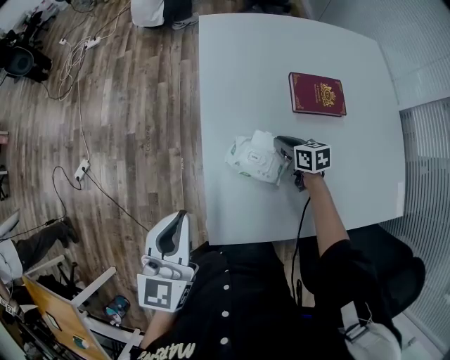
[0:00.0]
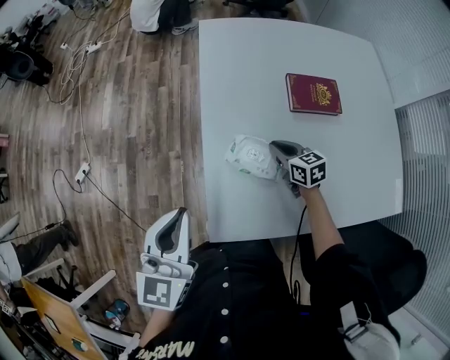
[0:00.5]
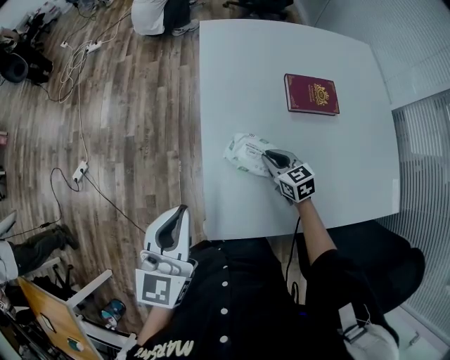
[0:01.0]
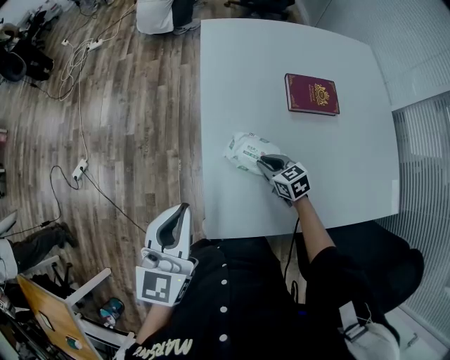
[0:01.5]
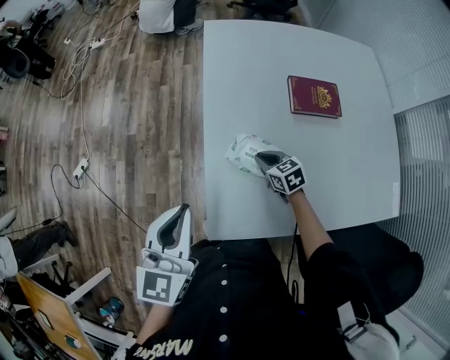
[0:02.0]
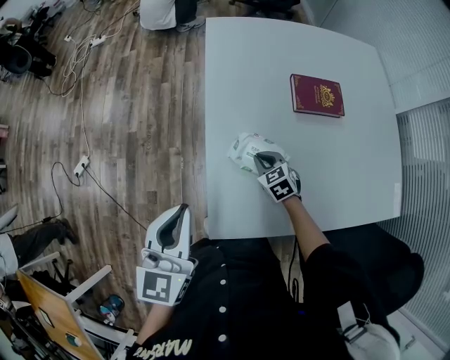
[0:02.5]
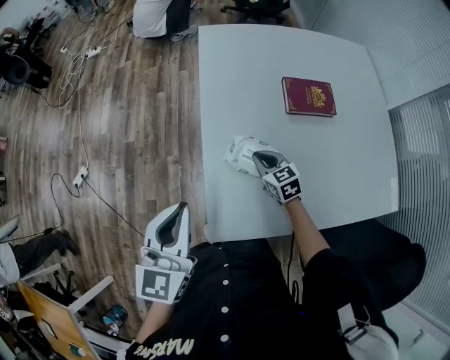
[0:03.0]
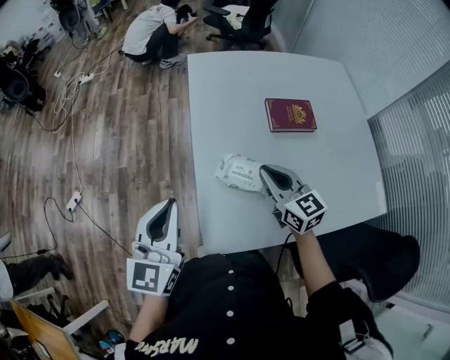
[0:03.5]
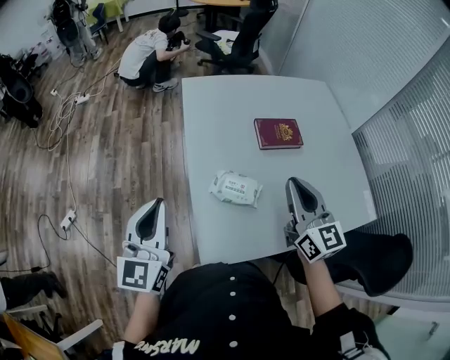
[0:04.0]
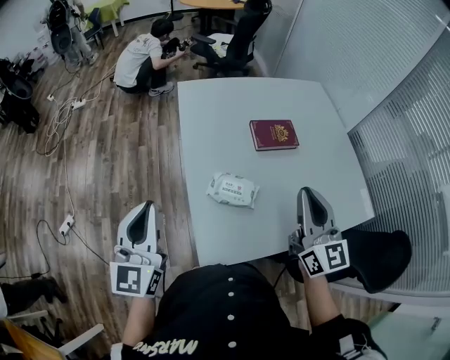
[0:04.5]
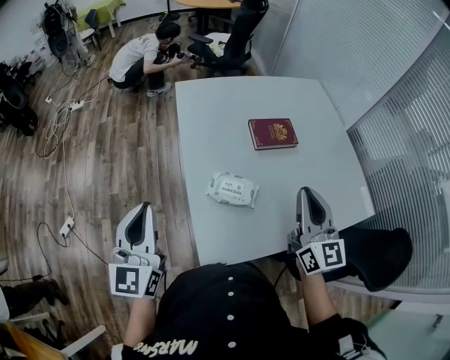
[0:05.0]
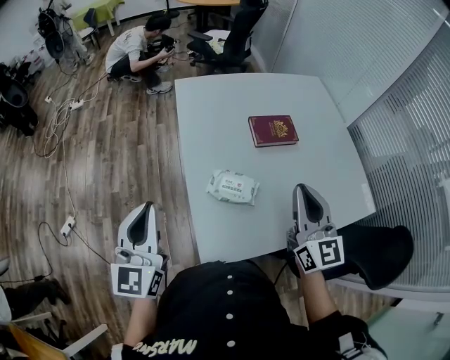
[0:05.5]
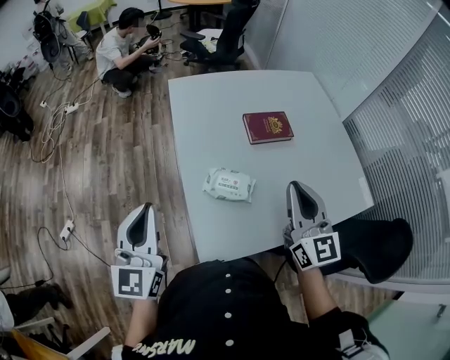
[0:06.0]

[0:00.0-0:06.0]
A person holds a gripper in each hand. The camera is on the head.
0:00.0 to 0:02.0: The right gripper goes about 10 cm to the left, and rotates some 20 degrees.
0:02.0 to 0:04.0: The left gripper shifts by roughly 5 cm. The right gripper is displaced upward by about 35 cm, and tips its fingers upward by about 40 degrees.
0:04.0 to 0:06.0: The grippers move only a little.

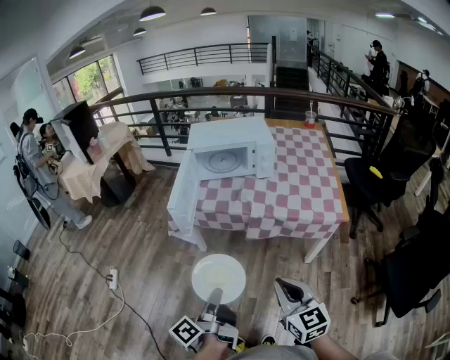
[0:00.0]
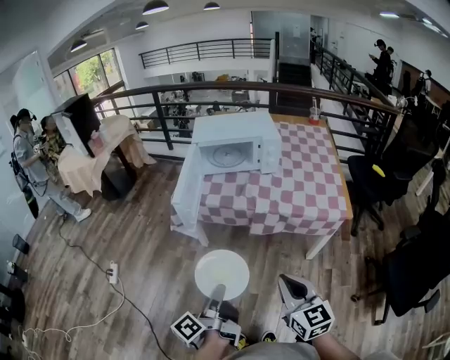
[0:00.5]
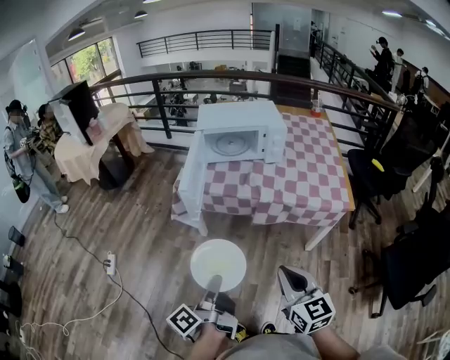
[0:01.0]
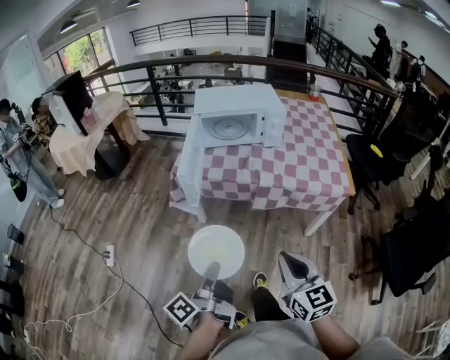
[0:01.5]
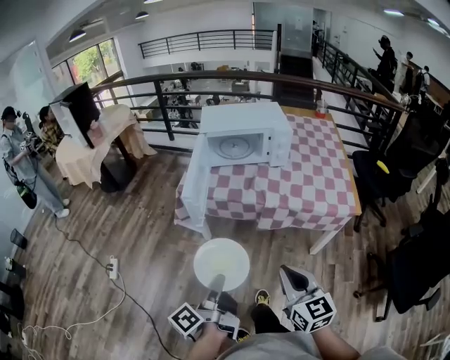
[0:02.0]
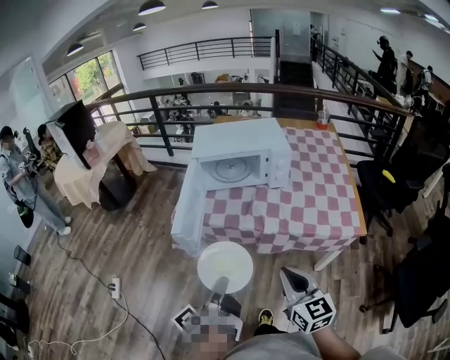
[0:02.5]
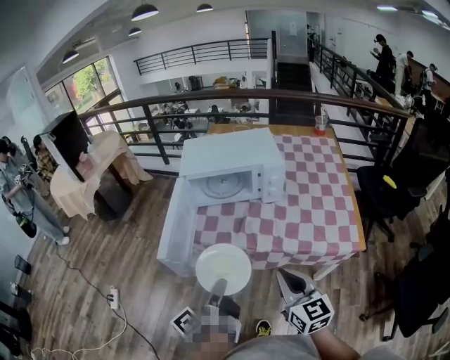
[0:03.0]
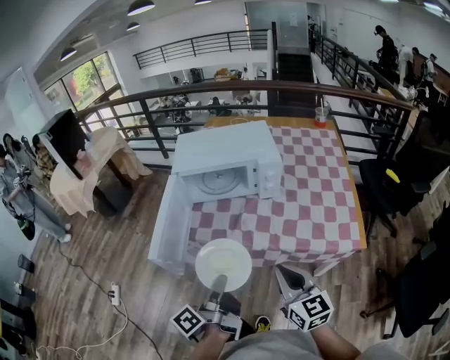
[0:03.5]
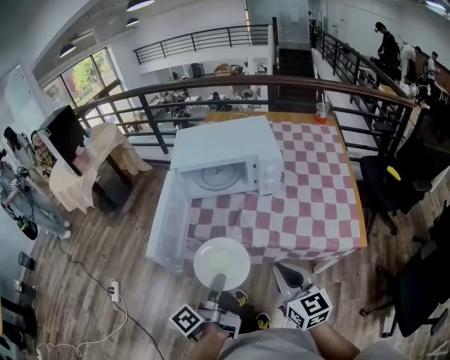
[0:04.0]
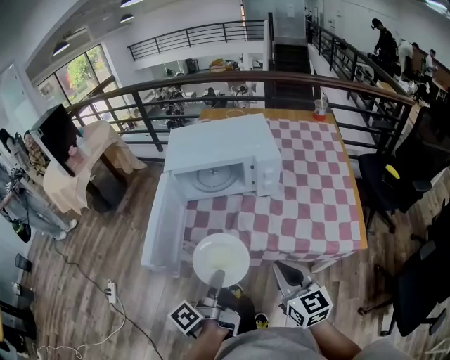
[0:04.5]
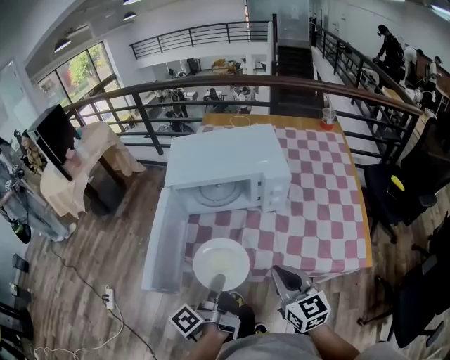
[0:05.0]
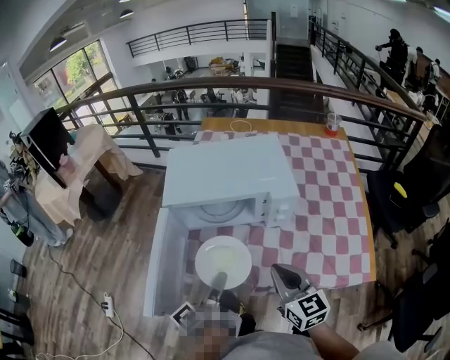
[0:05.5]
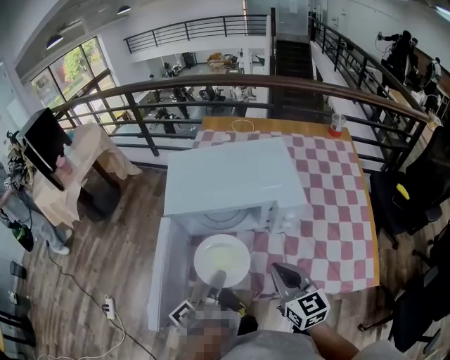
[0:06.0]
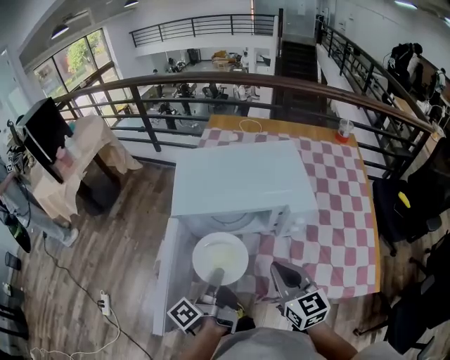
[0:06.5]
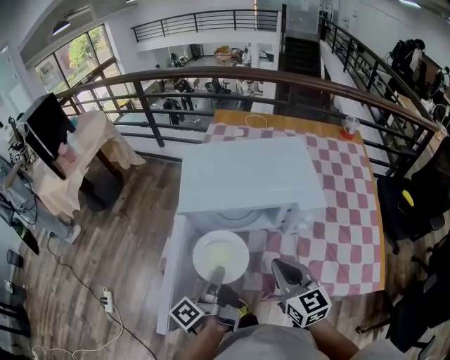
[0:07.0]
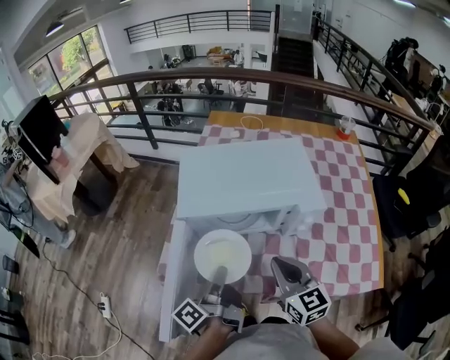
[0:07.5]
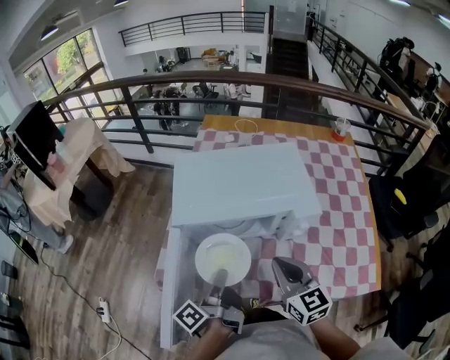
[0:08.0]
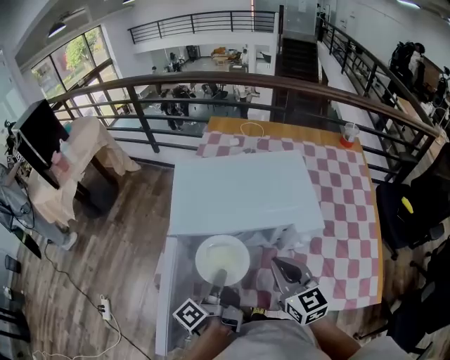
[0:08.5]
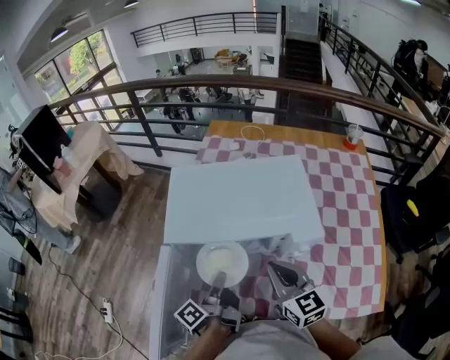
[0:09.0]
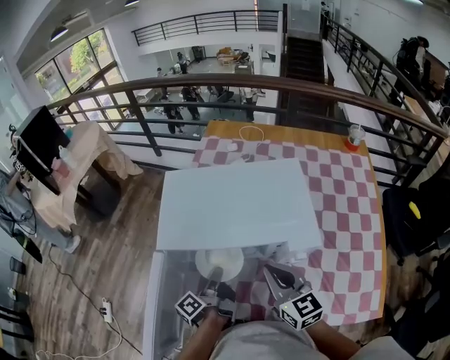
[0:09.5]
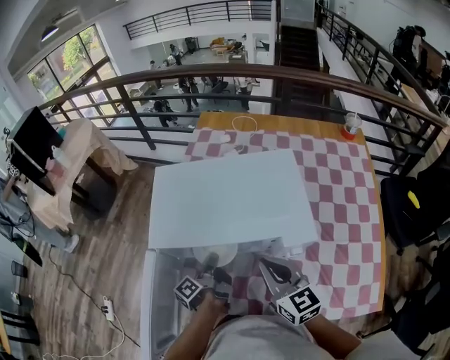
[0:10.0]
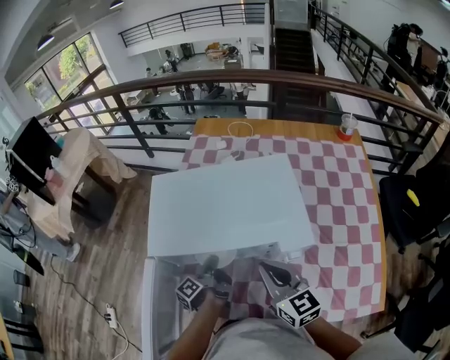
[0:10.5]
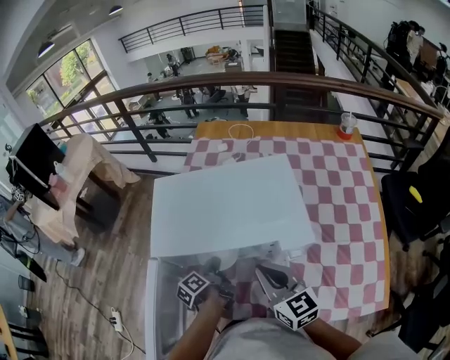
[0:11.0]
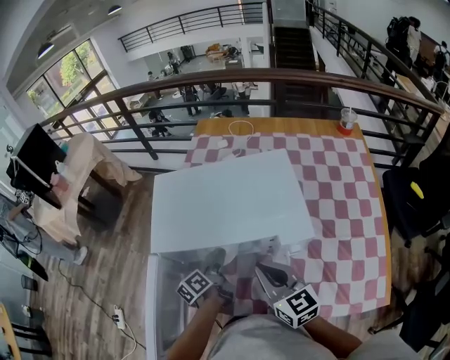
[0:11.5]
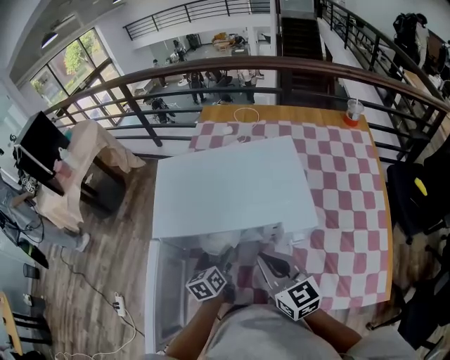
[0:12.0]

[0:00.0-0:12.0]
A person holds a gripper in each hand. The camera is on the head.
0:00.0 to 0:02.0: Both grippers travel together to the left, approximately 5 cm.
0:02.0 to 0:04.0: The grippers both shift forward and to the right by roughly 25 cm.
0:04.0 to 0:06.0: Both grippers travel together forward, about 25 cm.
0:06.0 to 0:08.0: The two grippers go about 5 cm forward.
0:08.0 to 0:10.0: The right gripper moves forward, approximately 10 cm, while the left gripper goes some 20 cm forward and downward.
0:10.0 to 0:12.0: The left gripper rolls clockwise, seen from behind, by roughly 60 degrees, and opens up.

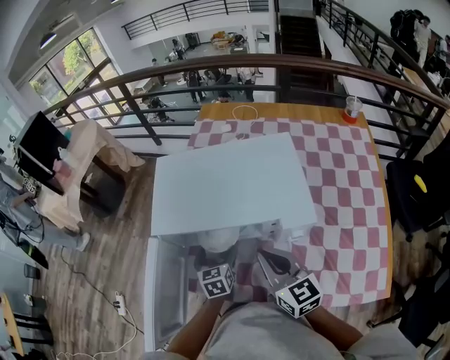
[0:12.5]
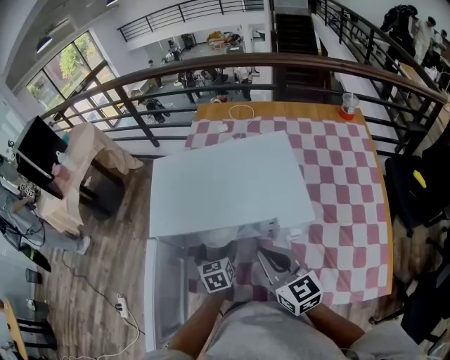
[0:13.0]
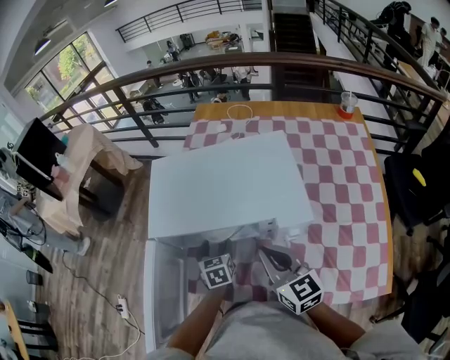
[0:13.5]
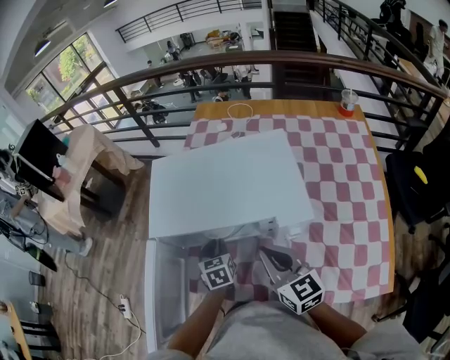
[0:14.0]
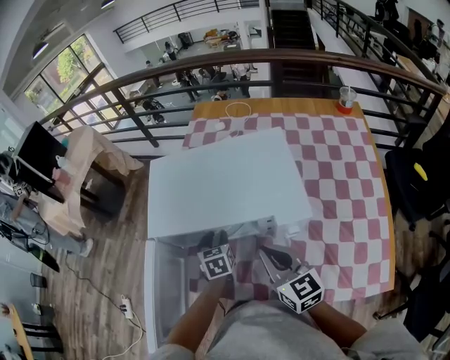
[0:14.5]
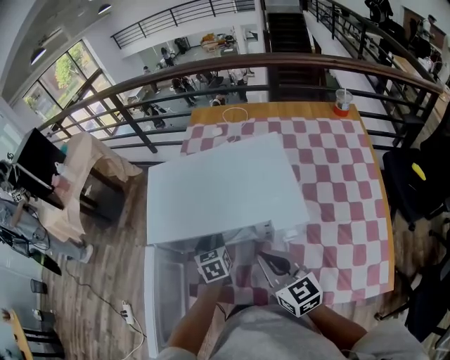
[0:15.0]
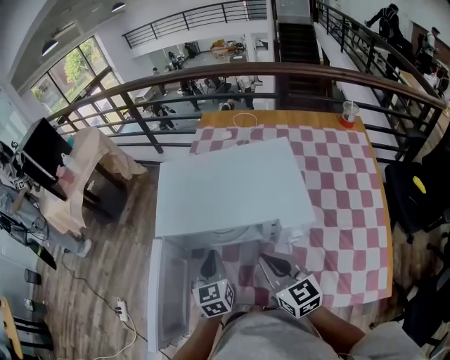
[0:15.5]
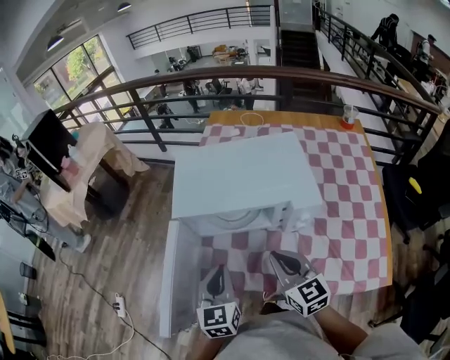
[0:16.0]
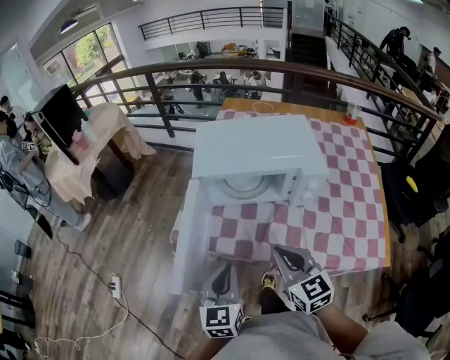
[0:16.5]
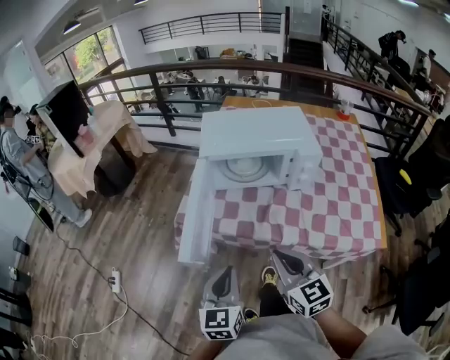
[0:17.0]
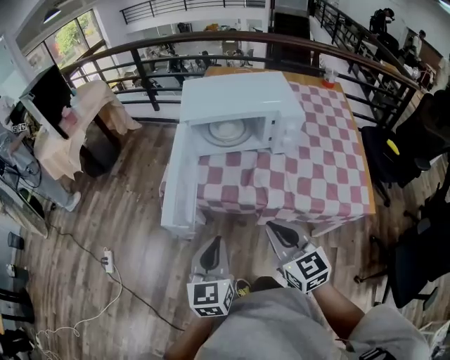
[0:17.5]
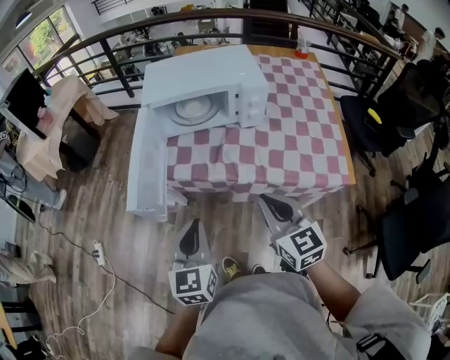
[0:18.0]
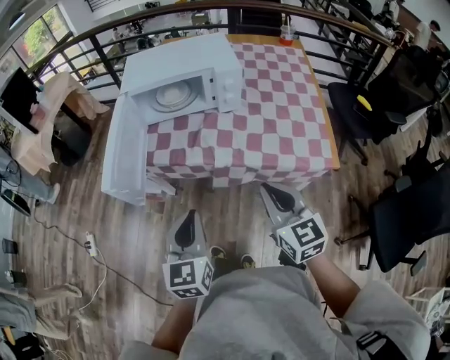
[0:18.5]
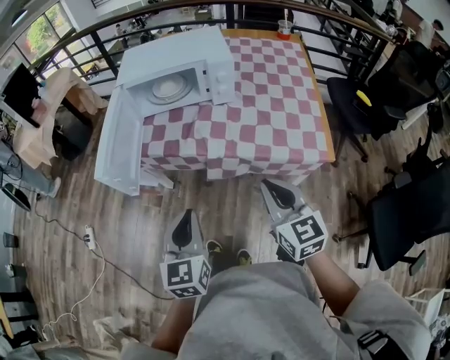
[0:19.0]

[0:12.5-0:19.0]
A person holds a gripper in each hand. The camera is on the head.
0:12.5 to 0:14.5: The left gripper closes its fingers.
0:14.5 to 0:17.0: Both grippers travel together backward and to the left, about 40 cm. The left gripper rotates roughly 30 degrees.
0:17.0 to 0:19.0: The right gripper goes some 25 cm to the right and backward. Meanwhile the left gripper shifts roughly 20 cm backward and to the right.

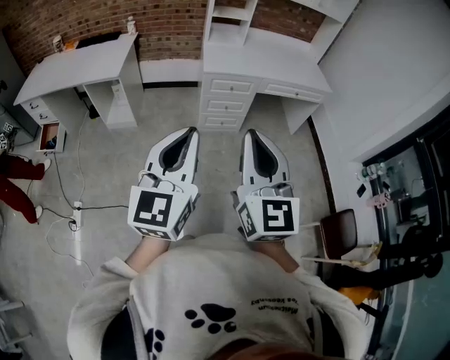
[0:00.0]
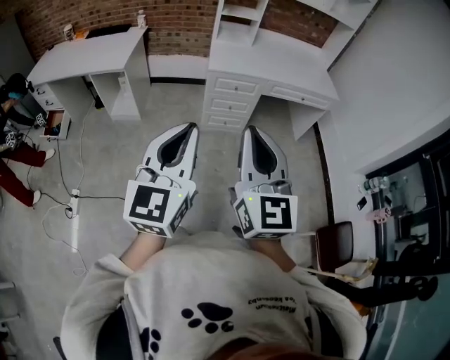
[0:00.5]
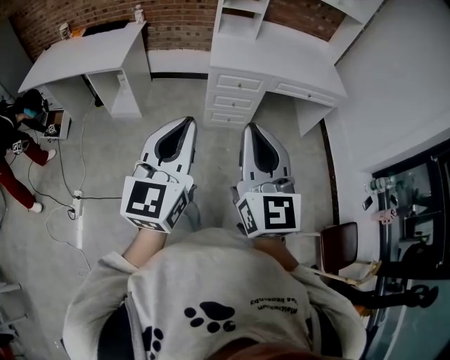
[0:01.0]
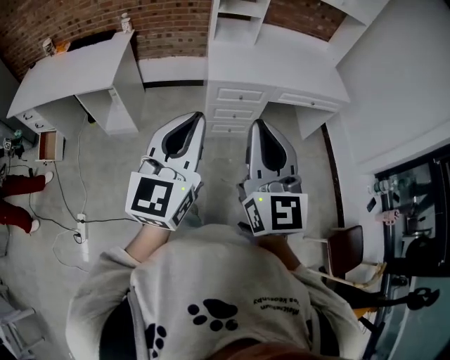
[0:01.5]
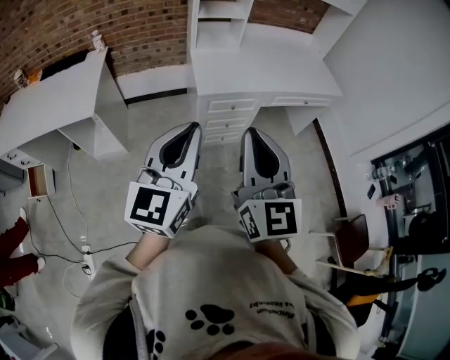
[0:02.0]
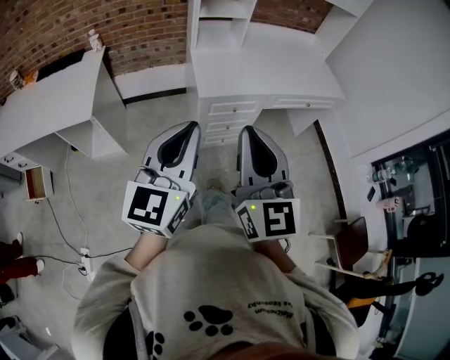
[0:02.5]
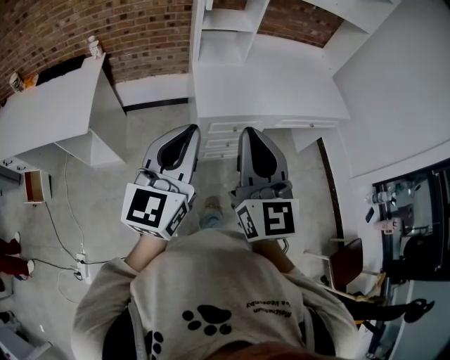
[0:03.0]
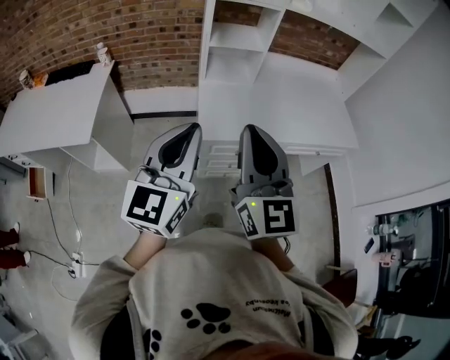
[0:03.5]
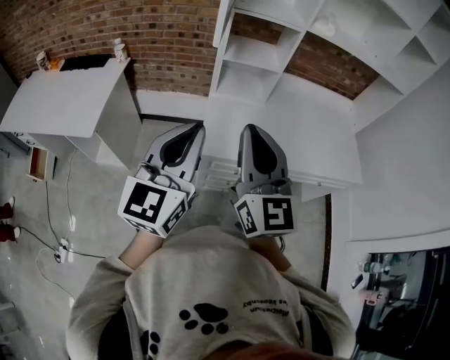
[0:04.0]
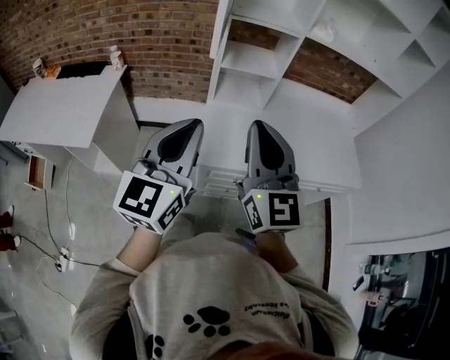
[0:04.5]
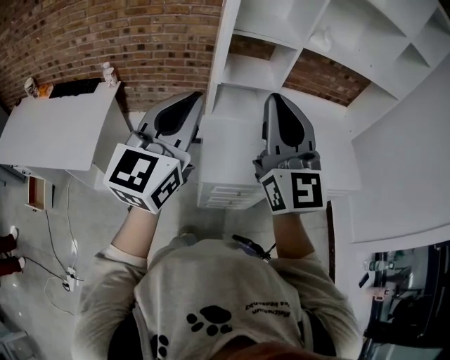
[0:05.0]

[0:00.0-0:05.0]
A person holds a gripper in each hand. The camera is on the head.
0:00.0 to 0:02.5: Both grippers travel together forward, approximately 35 cm.
0:02.5 to 0:05.0: Both grippers move forward, about 35 cm.
